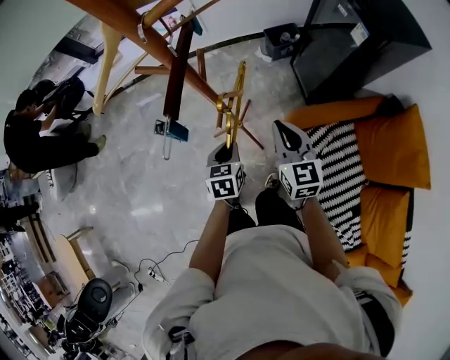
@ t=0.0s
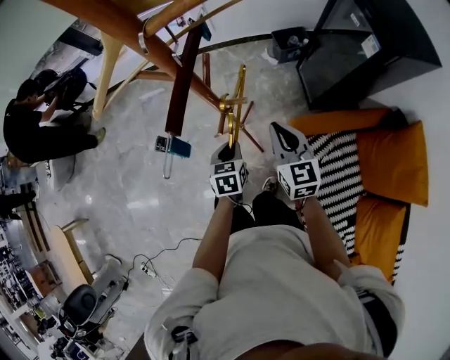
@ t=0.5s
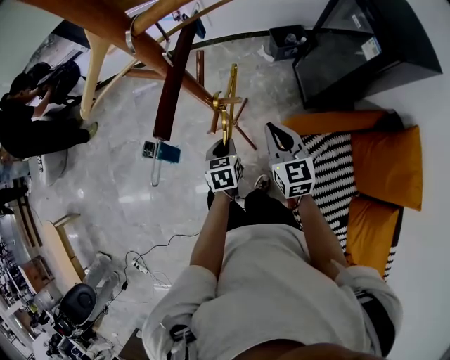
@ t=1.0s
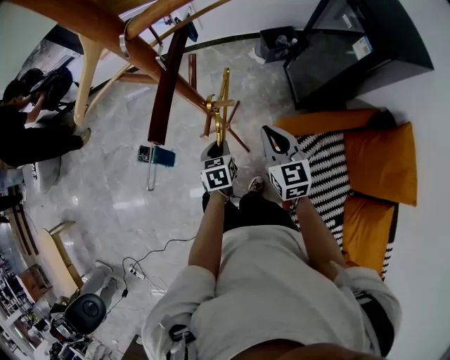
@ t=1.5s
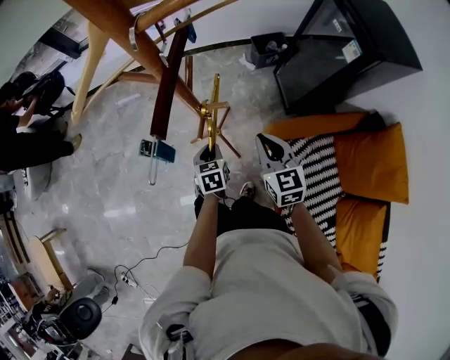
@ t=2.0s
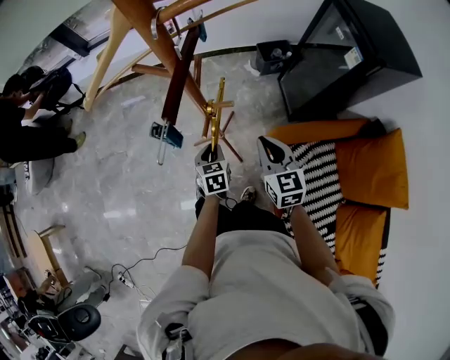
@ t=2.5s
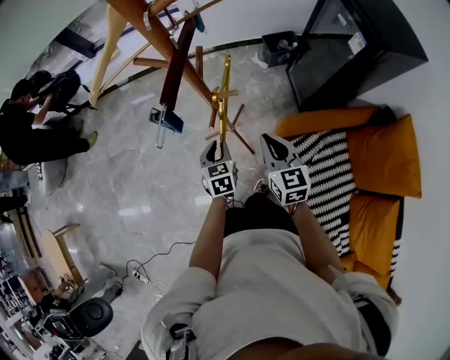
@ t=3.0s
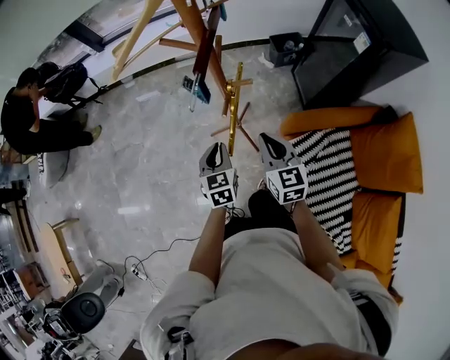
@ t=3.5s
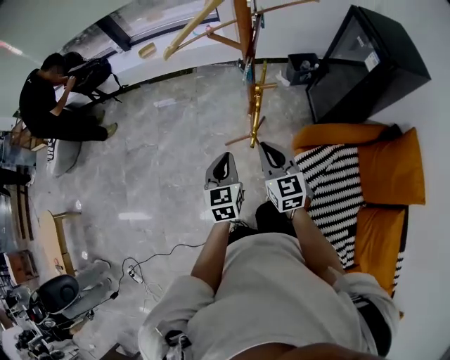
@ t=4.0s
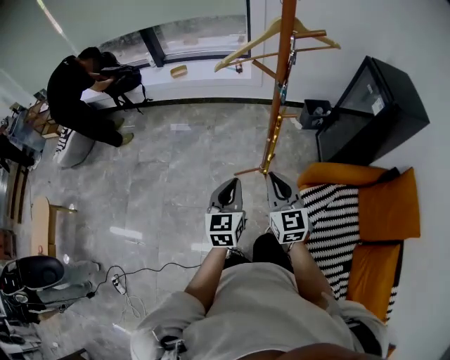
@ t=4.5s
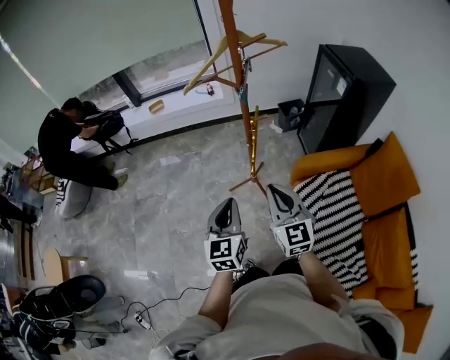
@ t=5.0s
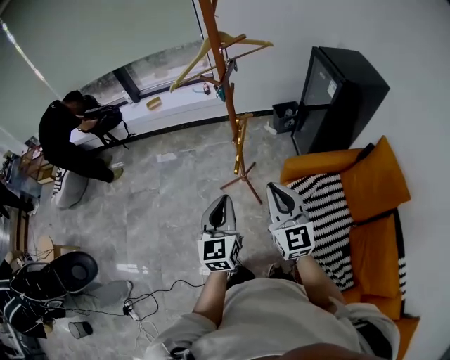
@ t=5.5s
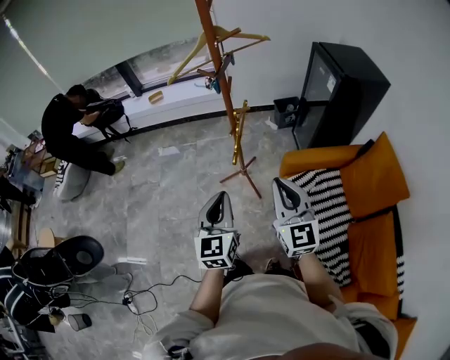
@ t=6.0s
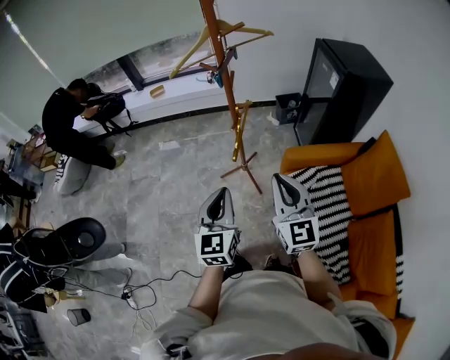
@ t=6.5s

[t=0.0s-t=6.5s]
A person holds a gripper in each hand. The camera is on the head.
t=0.0s to t=2.0s: The left gripper is displaced downward by roughly 10 cm.
t=2.0s to t=4.5s: The right gripper shifts roughly 30 cm to the left, backward and upward. Meanwhile the left gripper goes some 35 cm upward, backward and to the left, and tips its fingers upward by about 30 degrees.
t=4.5s to t=6.5s: The two grippers go approximately 20 cm backward, to the right and upward.

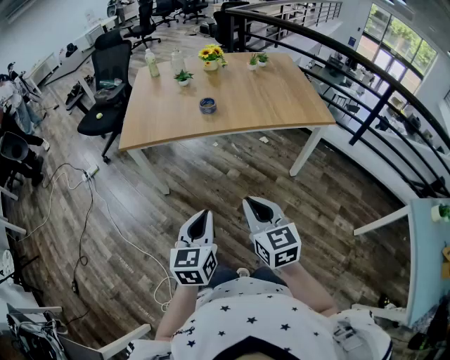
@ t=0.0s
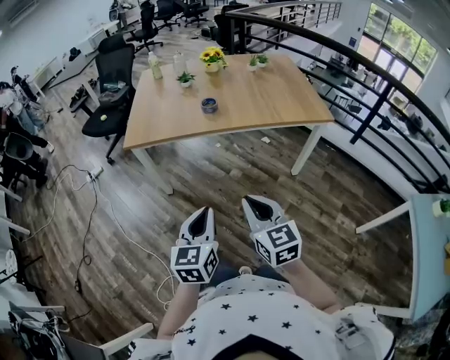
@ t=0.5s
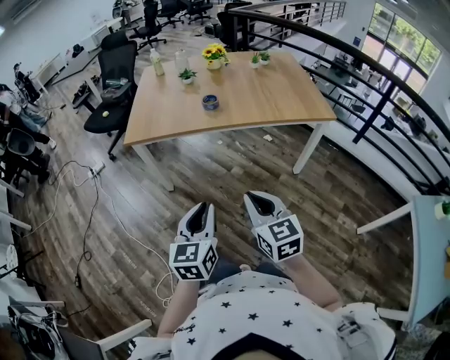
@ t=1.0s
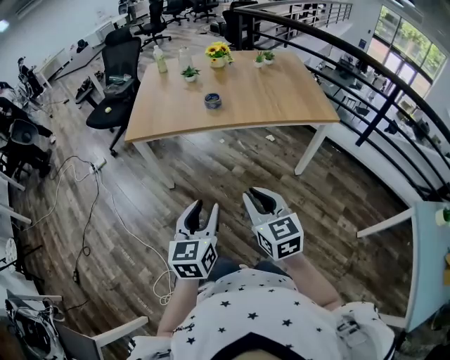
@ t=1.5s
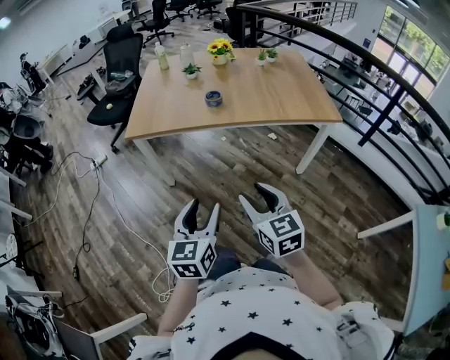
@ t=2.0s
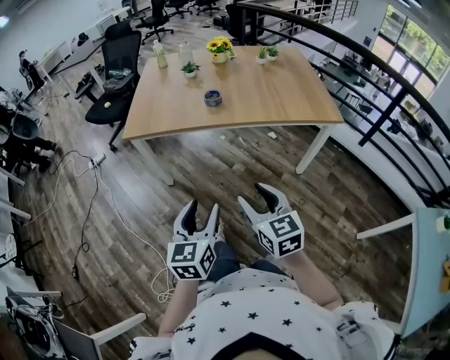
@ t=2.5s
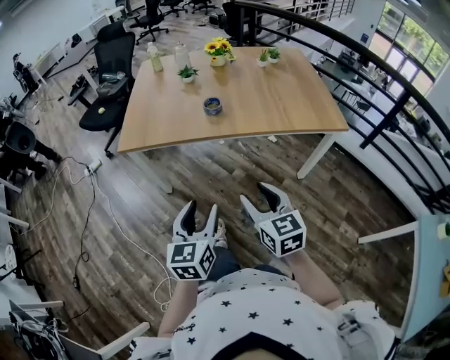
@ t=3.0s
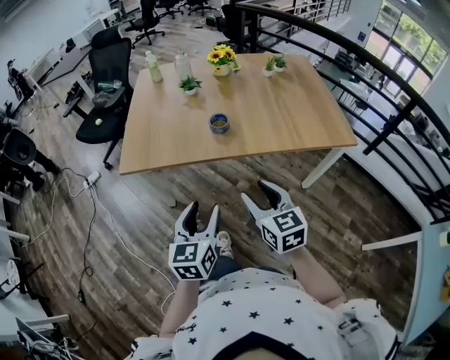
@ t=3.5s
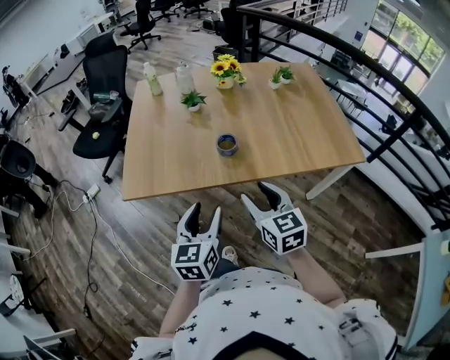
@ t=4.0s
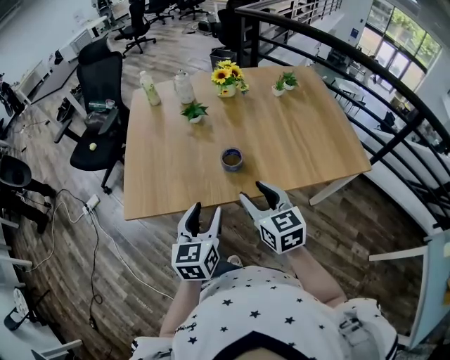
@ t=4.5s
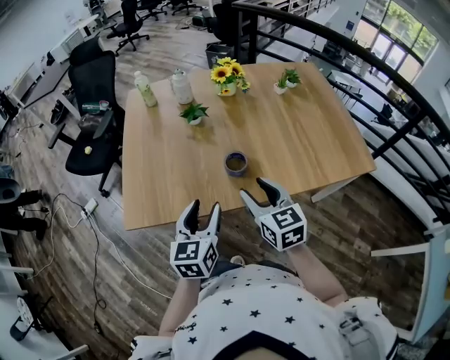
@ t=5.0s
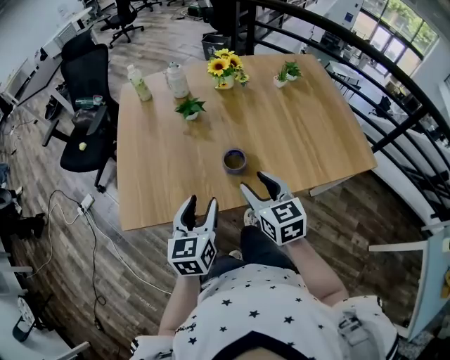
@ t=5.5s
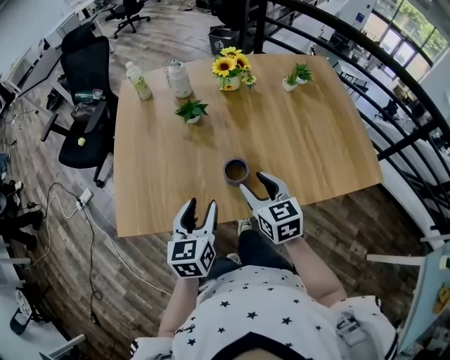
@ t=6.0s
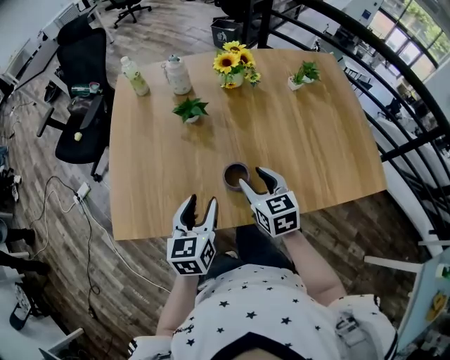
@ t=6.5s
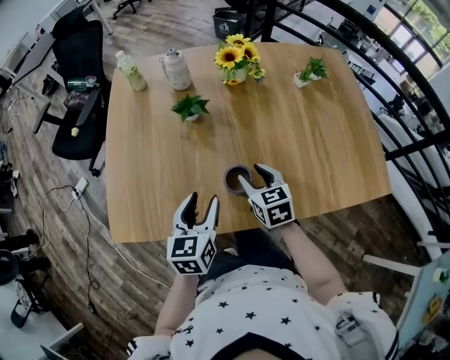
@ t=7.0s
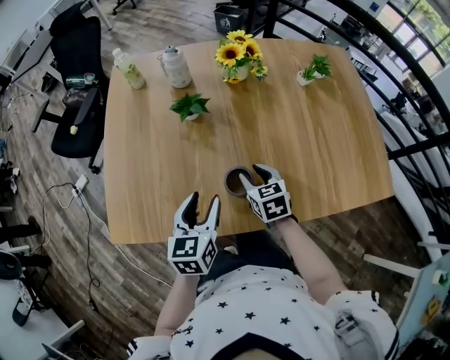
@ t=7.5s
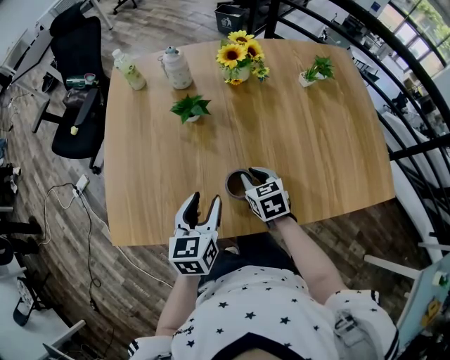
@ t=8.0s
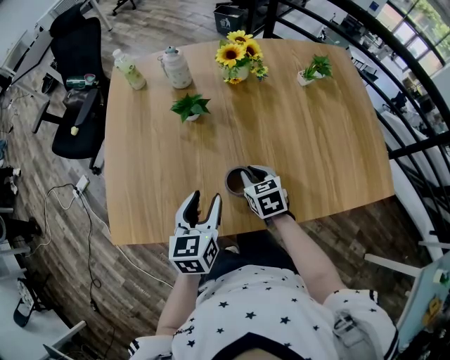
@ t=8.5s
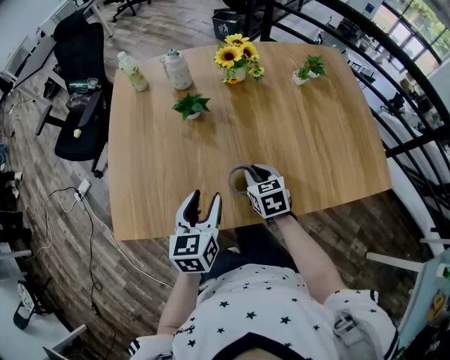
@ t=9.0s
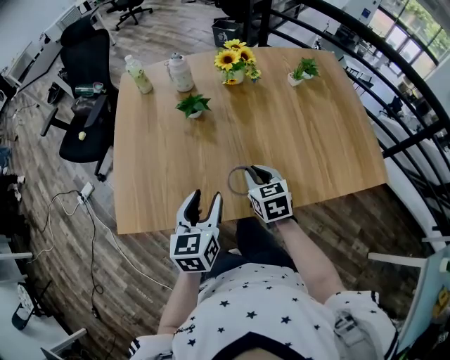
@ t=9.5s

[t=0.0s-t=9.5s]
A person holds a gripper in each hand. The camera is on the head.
t=0.0s to t=2.0s: The left gripper opens up, while the right gripper opens its fingers.
t=2.0s to t=4.0s: Both grippers travel together forward, approximately 35 cm.
t=4.0s to t=5.5s: The grippers both shift forward by roughly 15 cm.
t=5.5s to t=7.5s: The right gripper shifts roughly 20 cm forward and downward; the left gripper moves forward and downward, roughly 15 cm.
t=7.5s to t=9.5s: The left gripper goes approximately 5 cm backward. Meanwhile the right gripper shifts approximately 5 cm backward and upward, and closes its fingers.

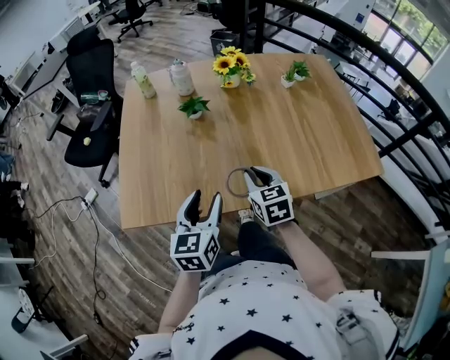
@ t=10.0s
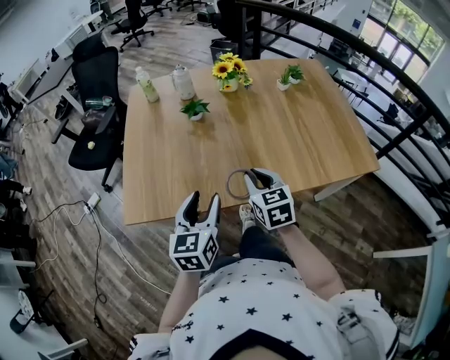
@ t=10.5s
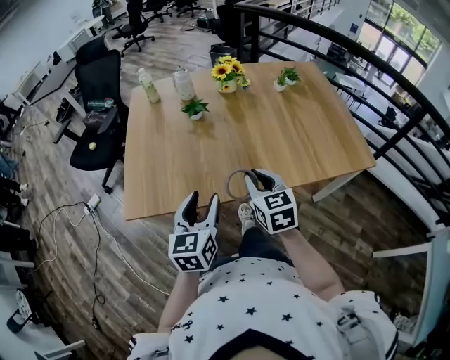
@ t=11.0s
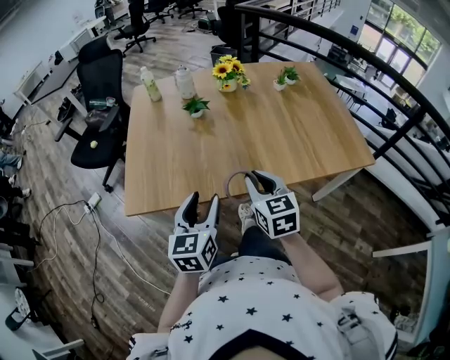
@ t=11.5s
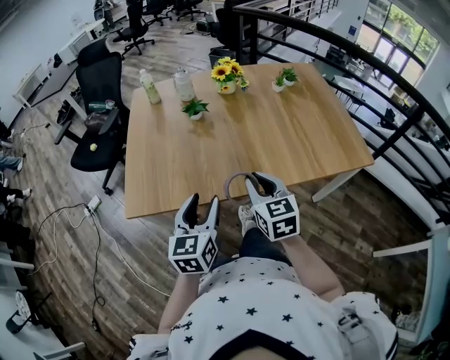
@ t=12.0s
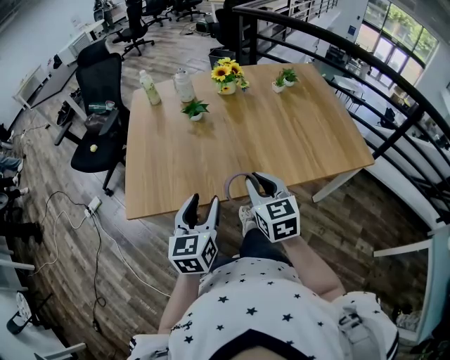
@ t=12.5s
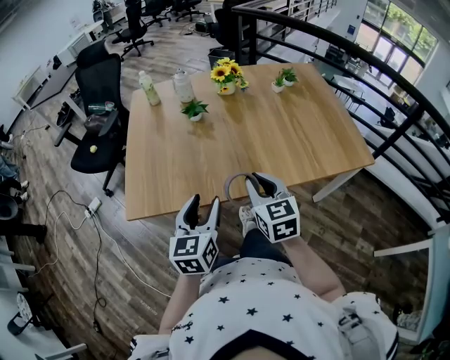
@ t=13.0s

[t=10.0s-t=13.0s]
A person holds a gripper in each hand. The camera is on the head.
t=10.0s to t=11.5s: The right gripper goes roughly 10 cm backward and upward. The left gripper moves backward, about 10 cm.
t=11.5s to t=13.0s: Both grippers stay put.

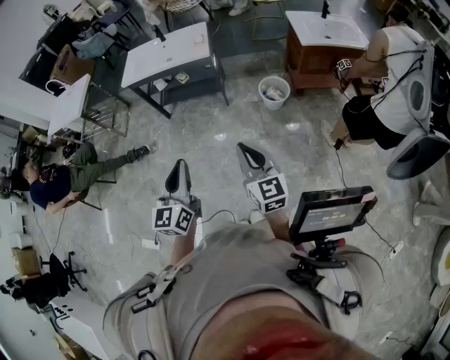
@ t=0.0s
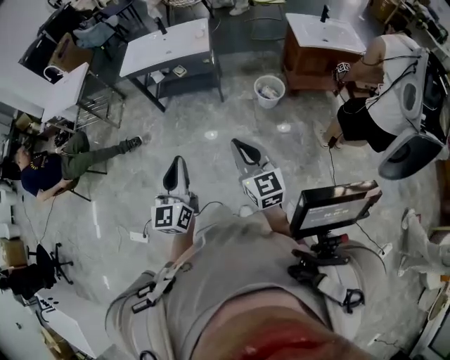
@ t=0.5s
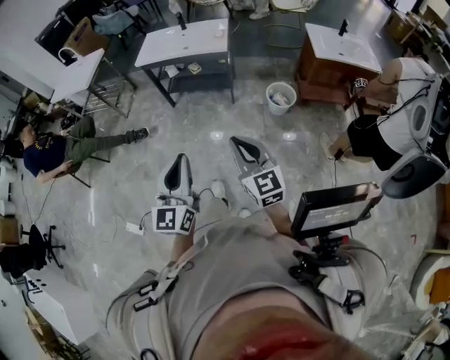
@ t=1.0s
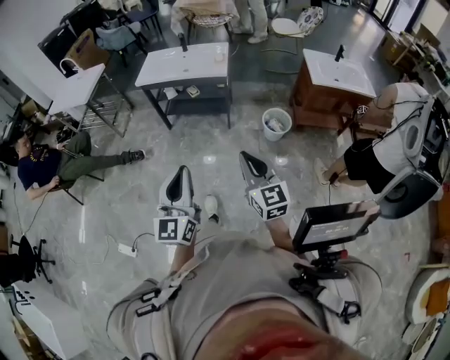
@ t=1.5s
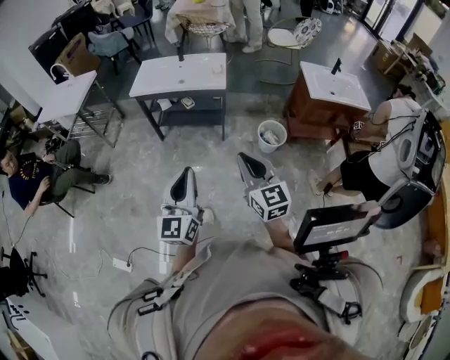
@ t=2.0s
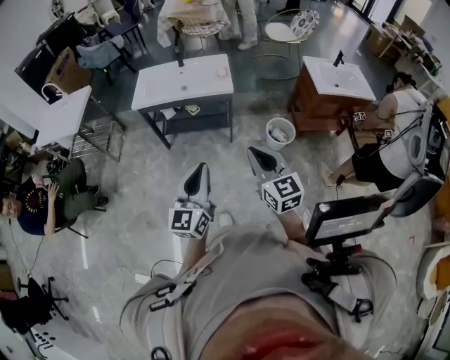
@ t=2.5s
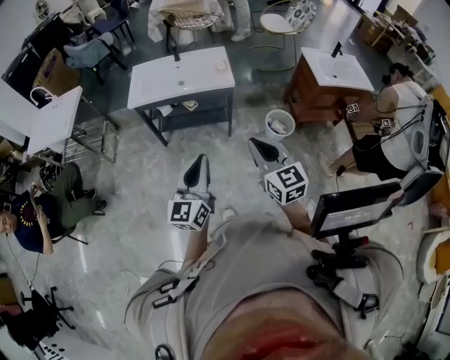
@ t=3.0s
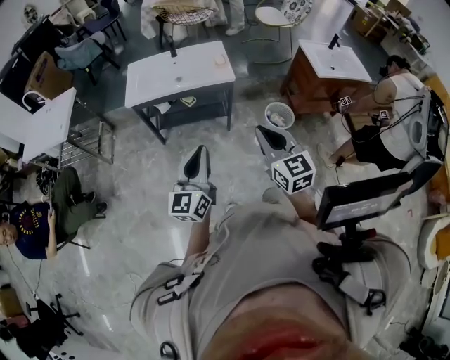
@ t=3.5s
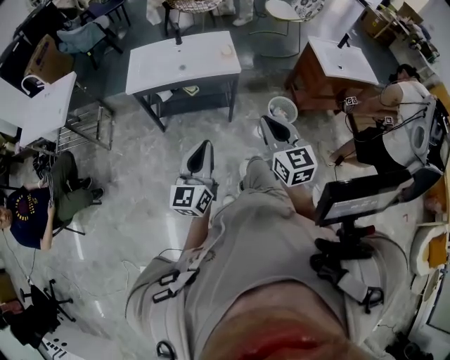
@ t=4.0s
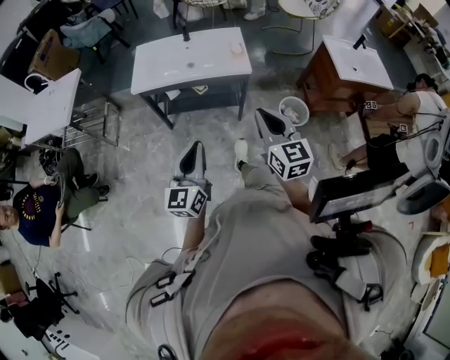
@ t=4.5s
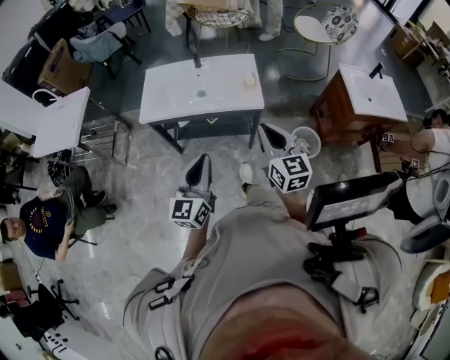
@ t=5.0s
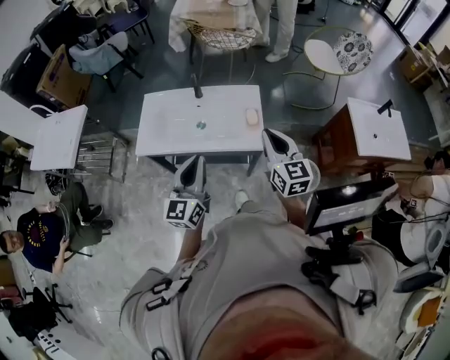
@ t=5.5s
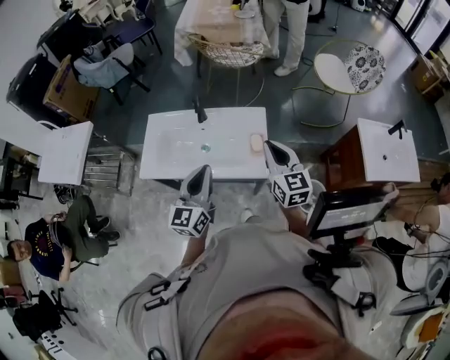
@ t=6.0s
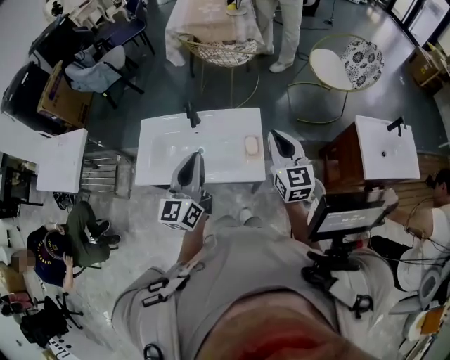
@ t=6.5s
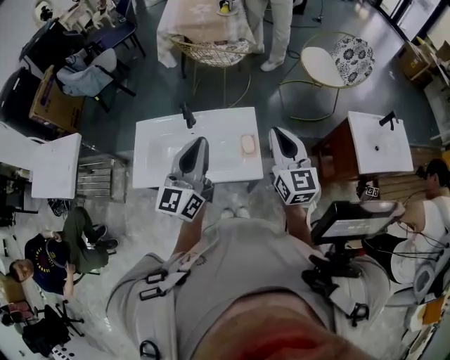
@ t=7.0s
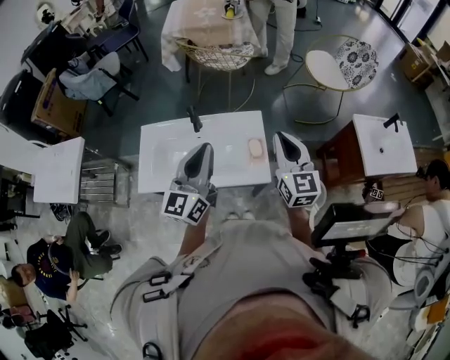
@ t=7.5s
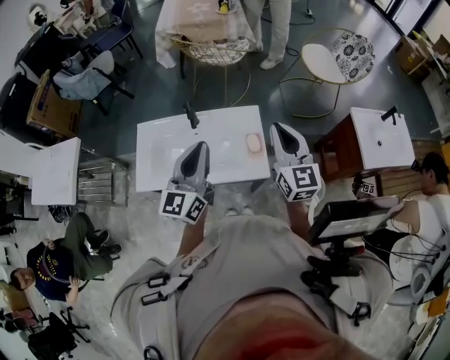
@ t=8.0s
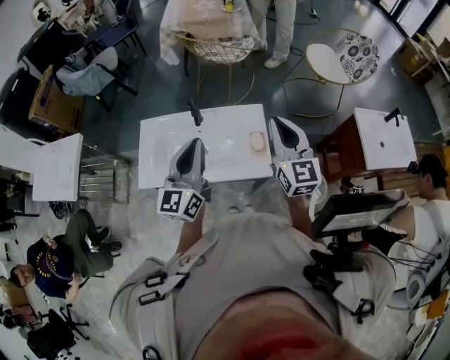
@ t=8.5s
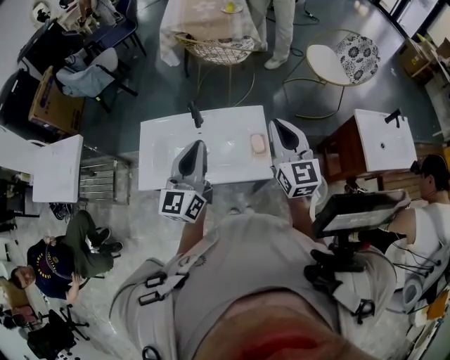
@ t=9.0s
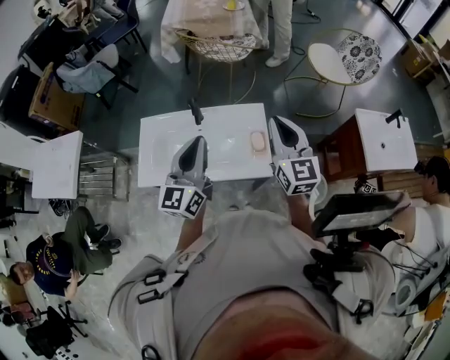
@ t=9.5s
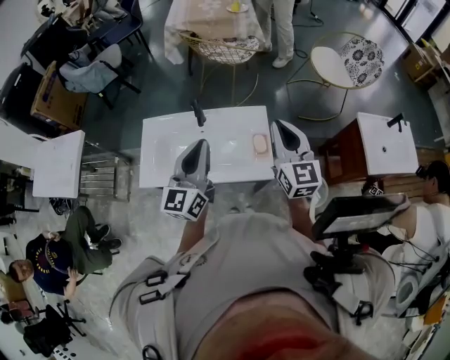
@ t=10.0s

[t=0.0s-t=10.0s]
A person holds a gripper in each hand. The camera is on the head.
t=0.0s to t=2.0s: The right gripper travels forward and to the left by about 10 cm. The left gripper heads to the left and forward, covering approximately 10 cm.
t=2.0s to t=4.0s: The two grippers go roughly 25 cm forward and to the left.
t=4.0s to t=6.0s: The two grippers travel together, forward, some 50 cm.
t=6.0s to t=8.0s: The left gripper shifts some 10 cm forward and upward. The right gripper is displaced upward by about 5 cm.
t=8.0s to t=10.0s: The grippers stay close to where they were, moving slightly.
